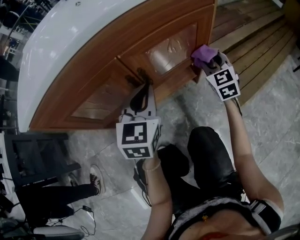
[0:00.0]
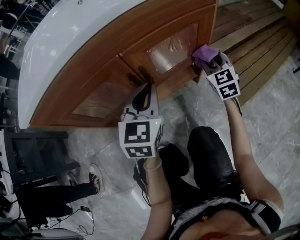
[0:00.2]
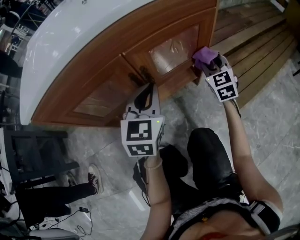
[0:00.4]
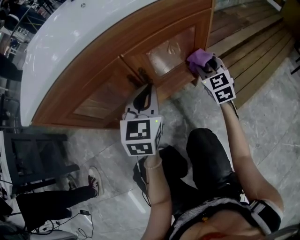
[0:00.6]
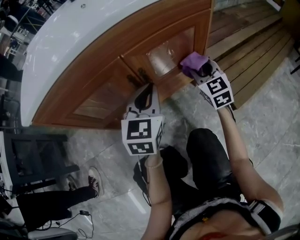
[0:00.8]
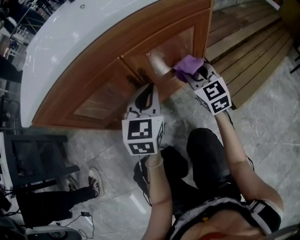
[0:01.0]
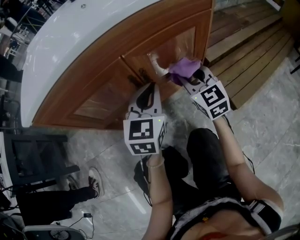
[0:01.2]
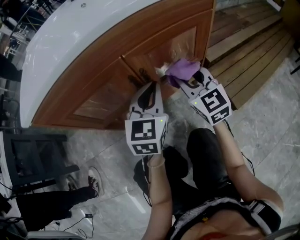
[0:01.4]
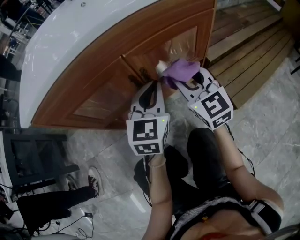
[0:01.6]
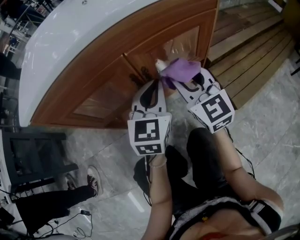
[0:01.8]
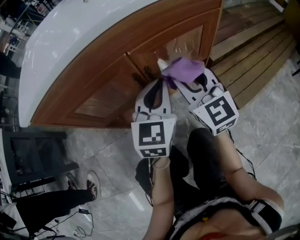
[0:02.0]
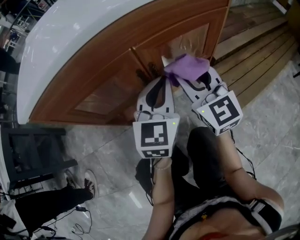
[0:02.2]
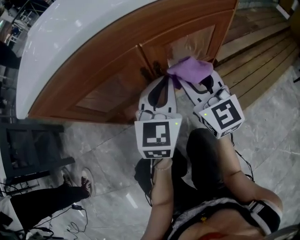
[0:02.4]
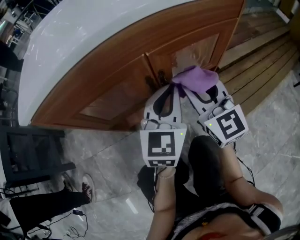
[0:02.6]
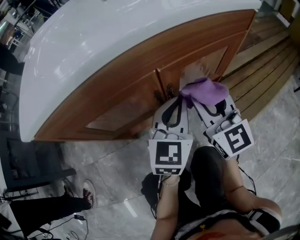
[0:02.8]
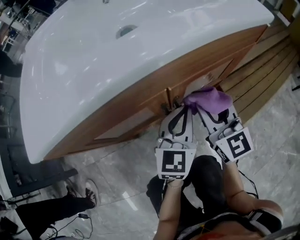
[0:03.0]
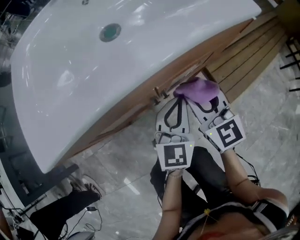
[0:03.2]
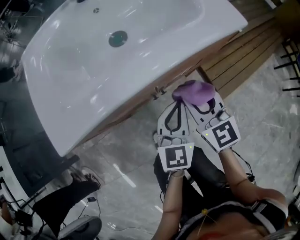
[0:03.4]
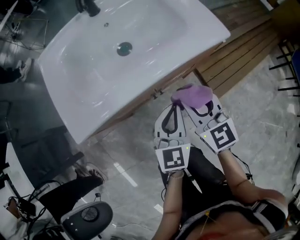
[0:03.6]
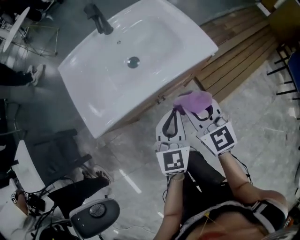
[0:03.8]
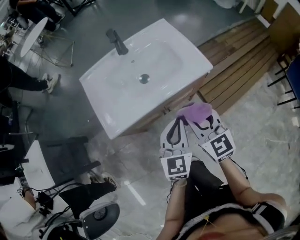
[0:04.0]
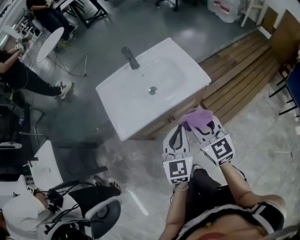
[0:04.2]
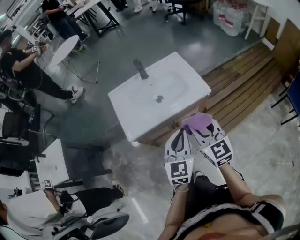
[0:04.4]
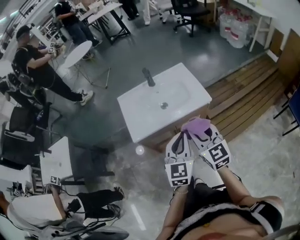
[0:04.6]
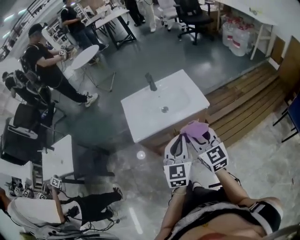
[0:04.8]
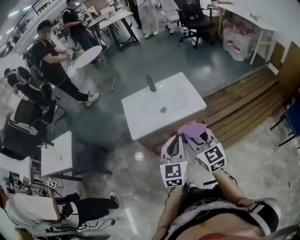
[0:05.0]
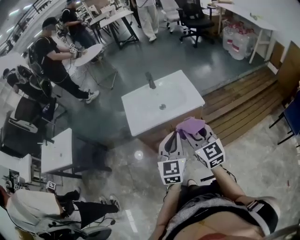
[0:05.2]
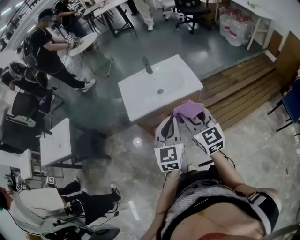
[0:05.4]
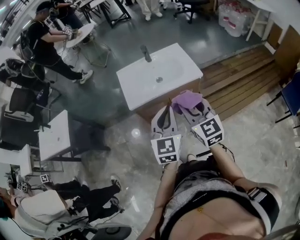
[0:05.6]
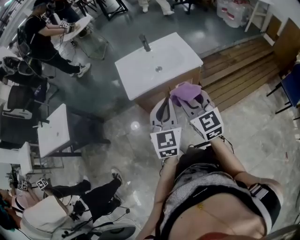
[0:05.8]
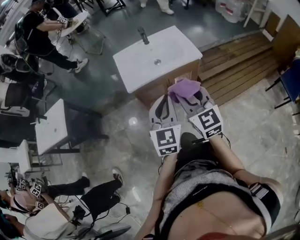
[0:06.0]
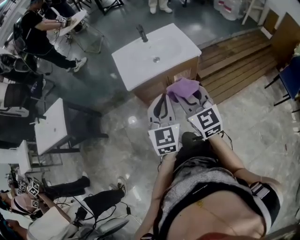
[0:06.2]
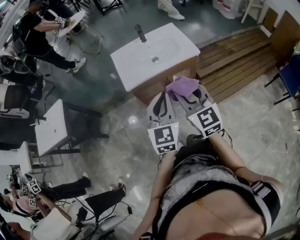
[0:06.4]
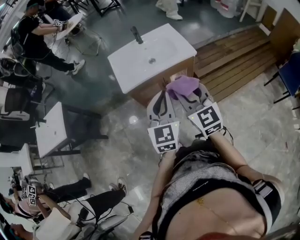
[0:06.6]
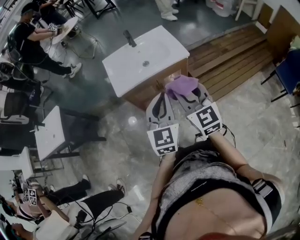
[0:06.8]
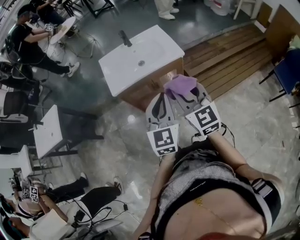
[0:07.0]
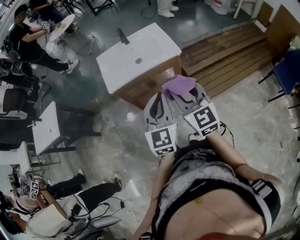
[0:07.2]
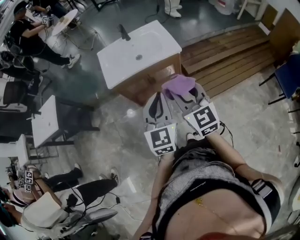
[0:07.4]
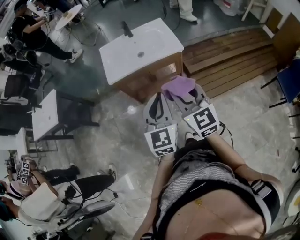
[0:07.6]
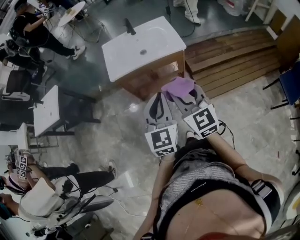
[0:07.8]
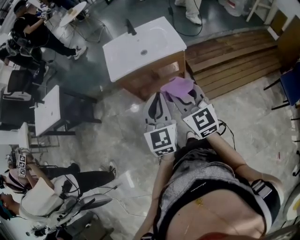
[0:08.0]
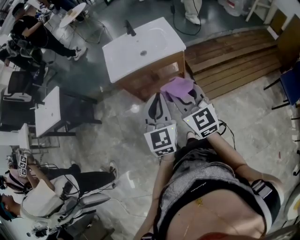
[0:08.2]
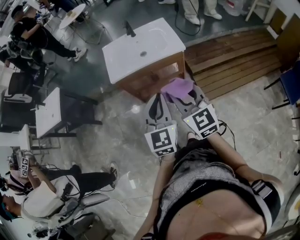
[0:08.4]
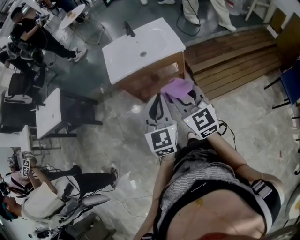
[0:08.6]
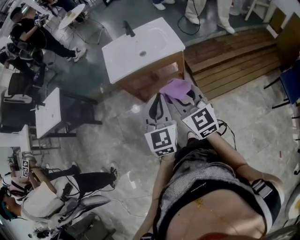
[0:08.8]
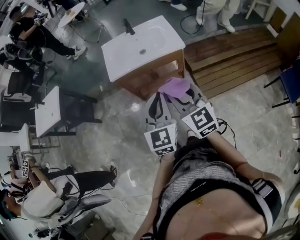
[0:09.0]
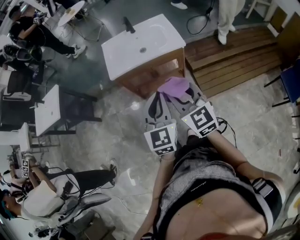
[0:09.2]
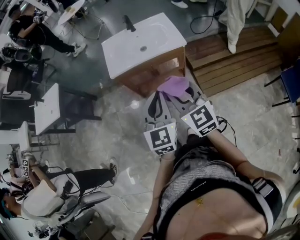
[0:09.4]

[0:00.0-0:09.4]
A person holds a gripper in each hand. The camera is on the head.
0:00.0 to 0:01.6: The right gripper is displaced to the left, upward and backward by about 20 cm, and changes its angle by about 20 degrees.
0:01.6 to 0:03.2: There are only small adjustments of the grippers.
0:03.2 to 0:04.8: The two grippers go about 50 cm upward.
0:04.8 to 0:06.2: The two grippers go some 15 cm backward and to the left.
0:06.2 to 0:07.8: Both grippers travel together to the right and backward, some 15 cm.
0:07.8 to 0:09.4: There are only small adjustments of the grippers.

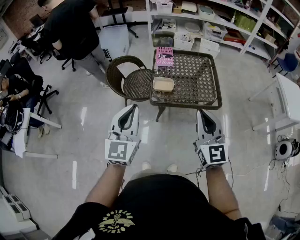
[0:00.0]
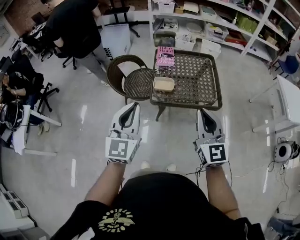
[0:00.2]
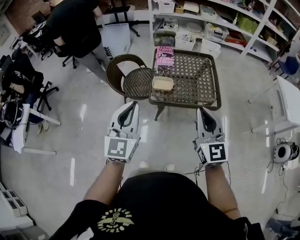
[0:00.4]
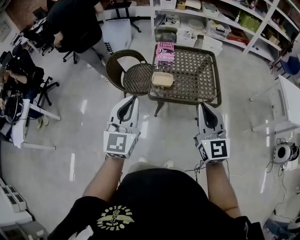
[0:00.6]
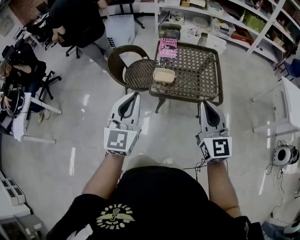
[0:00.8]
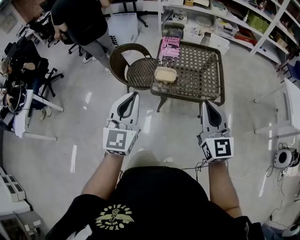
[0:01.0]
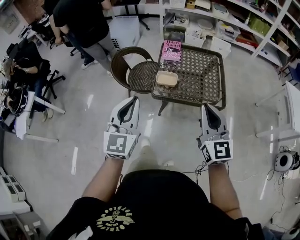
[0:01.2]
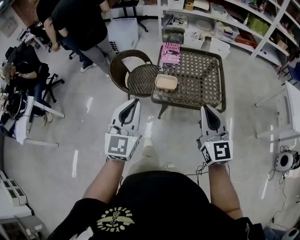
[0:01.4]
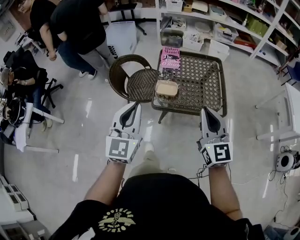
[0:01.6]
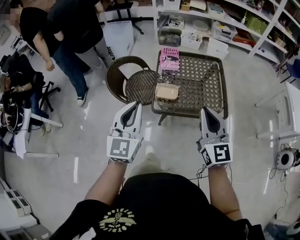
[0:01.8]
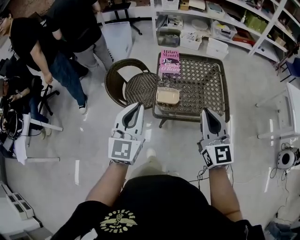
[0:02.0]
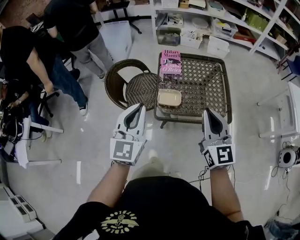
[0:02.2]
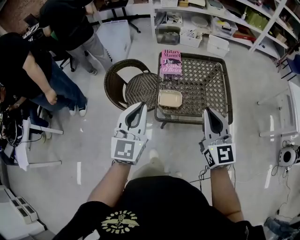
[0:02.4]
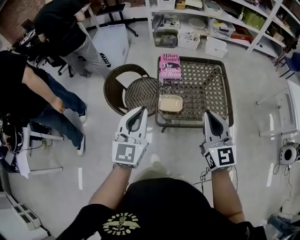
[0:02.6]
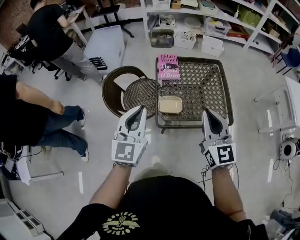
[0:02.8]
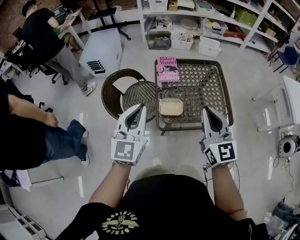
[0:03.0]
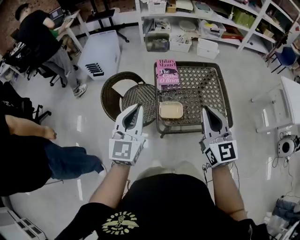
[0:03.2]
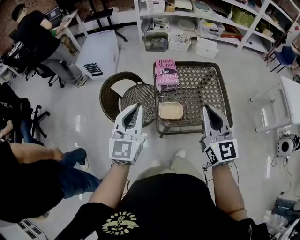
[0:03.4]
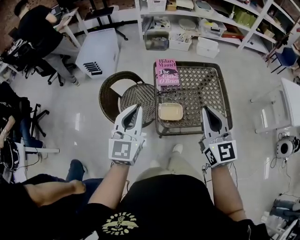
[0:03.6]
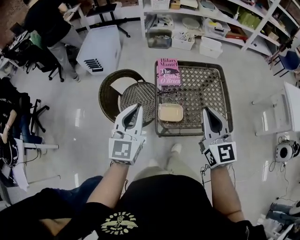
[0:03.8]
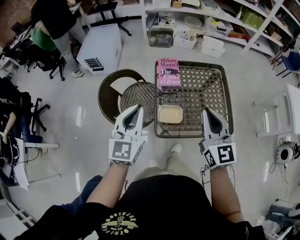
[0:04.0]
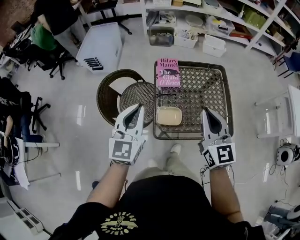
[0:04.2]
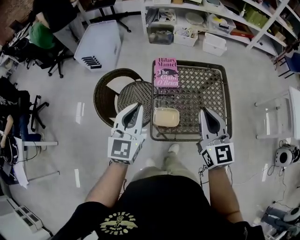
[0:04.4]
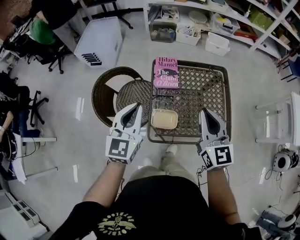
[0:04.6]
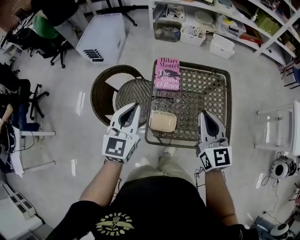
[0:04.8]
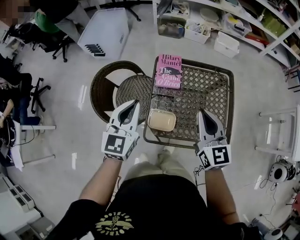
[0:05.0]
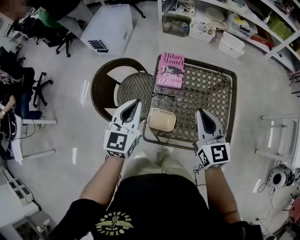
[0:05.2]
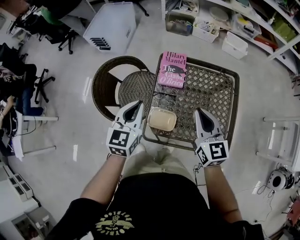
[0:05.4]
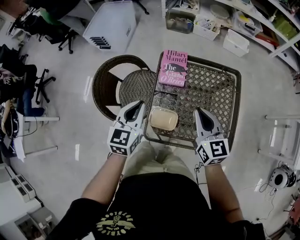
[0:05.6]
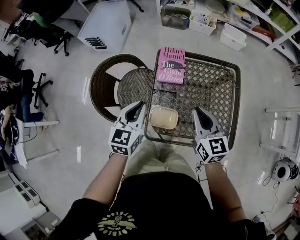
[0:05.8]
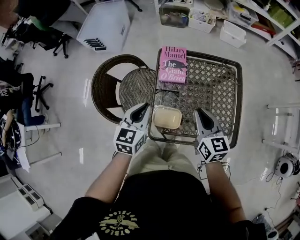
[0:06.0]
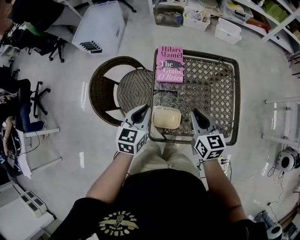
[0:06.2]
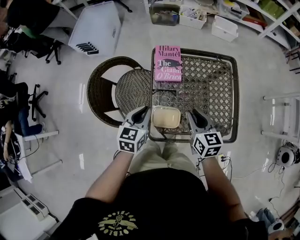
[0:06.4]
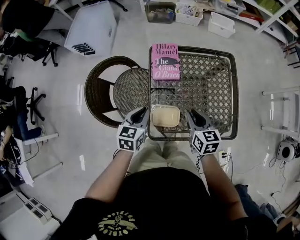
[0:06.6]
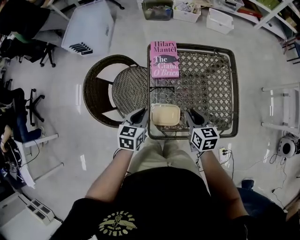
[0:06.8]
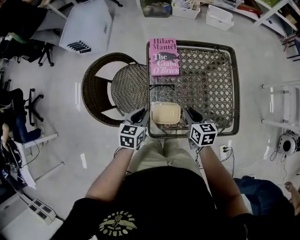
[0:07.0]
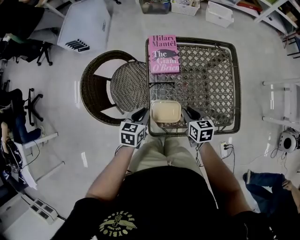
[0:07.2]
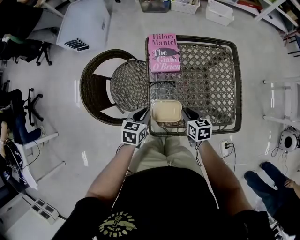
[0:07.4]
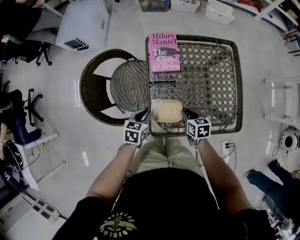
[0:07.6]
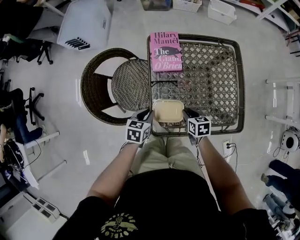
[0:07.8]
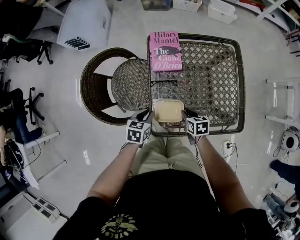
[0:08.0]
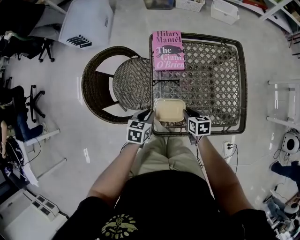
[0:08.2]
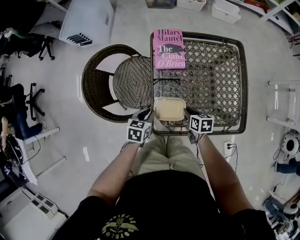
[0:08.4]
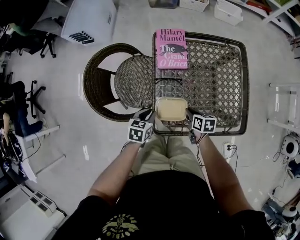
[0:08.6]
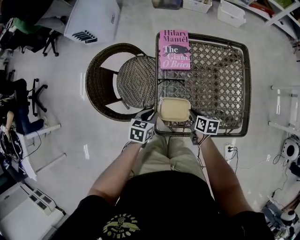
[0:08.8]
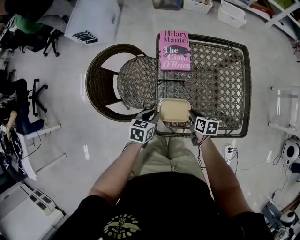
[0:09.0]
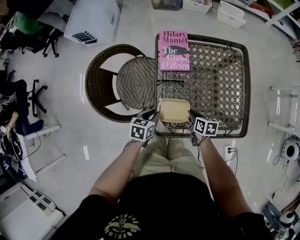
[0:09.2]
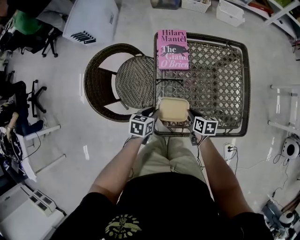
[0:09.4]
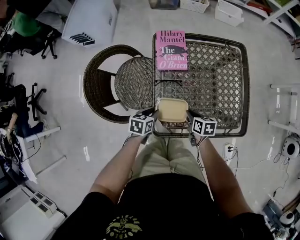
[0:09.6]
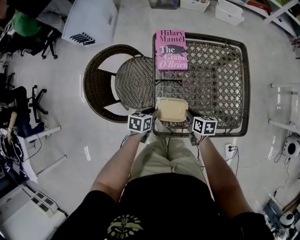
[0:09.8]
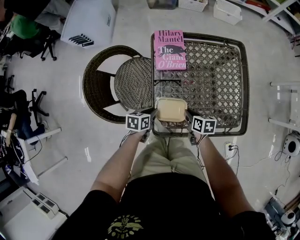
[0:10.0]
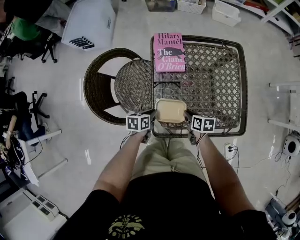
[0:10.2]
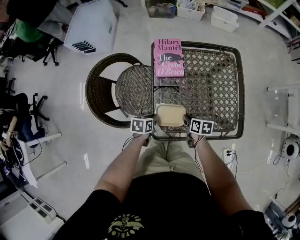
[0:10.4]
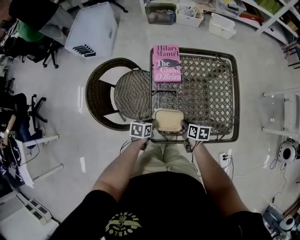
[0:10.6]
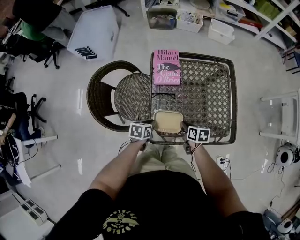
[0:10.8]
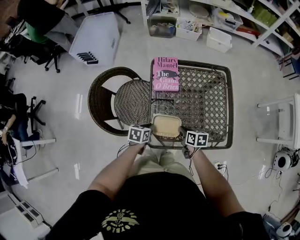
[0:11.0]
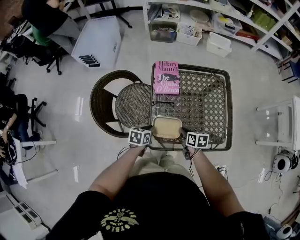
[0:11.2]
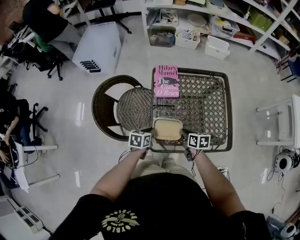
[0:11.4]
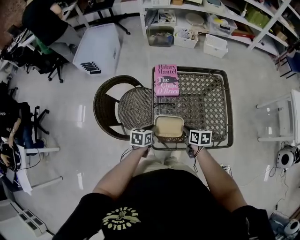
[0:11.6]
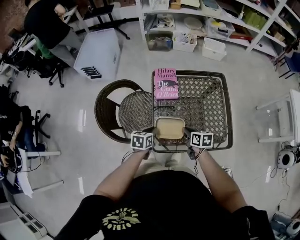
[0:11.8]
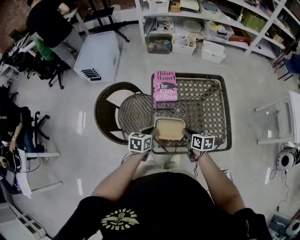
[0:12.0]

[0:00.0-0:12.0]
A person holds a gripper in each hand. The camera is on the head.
0:00.0 to 0:01.6: The grippers both shift forward by roughly 5 cm.
0:01.6 to 0:03.0: The right gripper heads forward and to the left, covering roughly 20 cm. Meanwhile the left gripper heads forward, covering about 20 cm.
0:03.0 to 0:04.4: The two grippers go about 15 cm forward.
0:04.4 to 0:06.0: The grippers both shift downward and forward by some 15 cm. The left gripper rotates approximately 20 degrees. Meanwhile the right gripper turns by approximately 20 degrees.
0:06.0 to 0:07.6: Both grippers move downward, roughly 20 cm. The left gripper changes its angle by about 30 degrees, while the right gripper turns by roughly 30 degrees.
0:07.6 to 0:09.0: The grippers make only small movements.
0:09.0 to 0:10.4: The grippers stay close to where they were, moving slightly.
0:10.4 to 0:12.0: Both grippers move upward, some 15 cm.

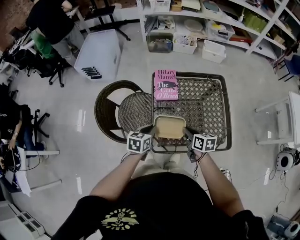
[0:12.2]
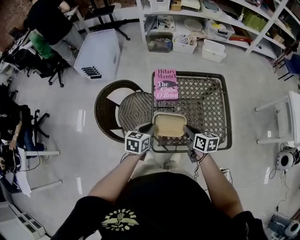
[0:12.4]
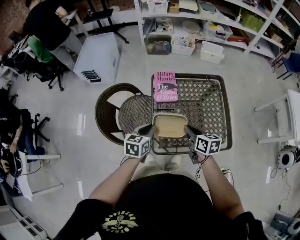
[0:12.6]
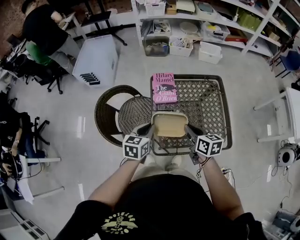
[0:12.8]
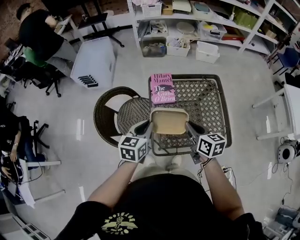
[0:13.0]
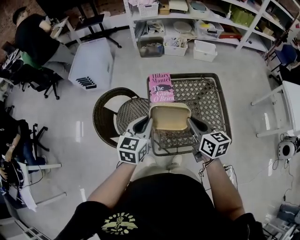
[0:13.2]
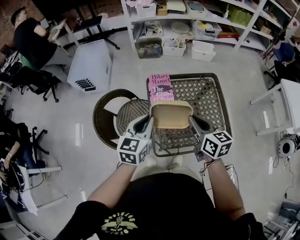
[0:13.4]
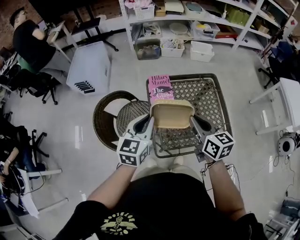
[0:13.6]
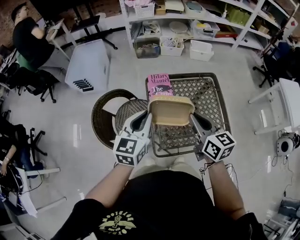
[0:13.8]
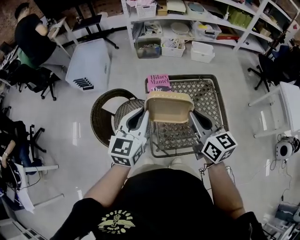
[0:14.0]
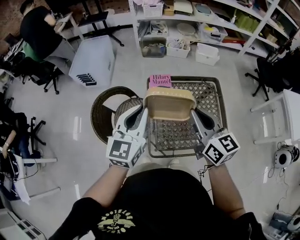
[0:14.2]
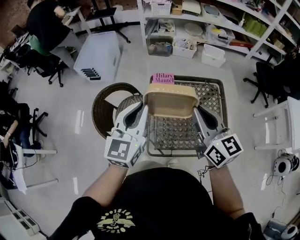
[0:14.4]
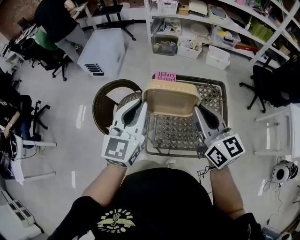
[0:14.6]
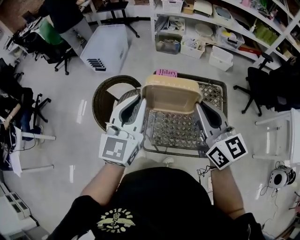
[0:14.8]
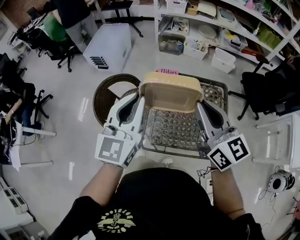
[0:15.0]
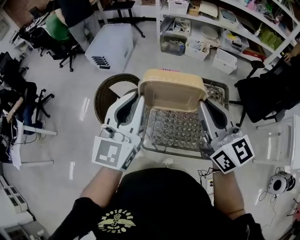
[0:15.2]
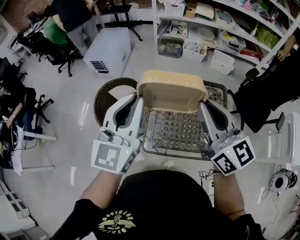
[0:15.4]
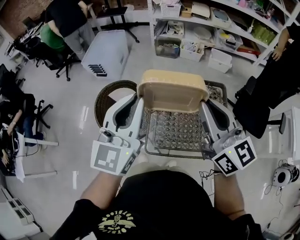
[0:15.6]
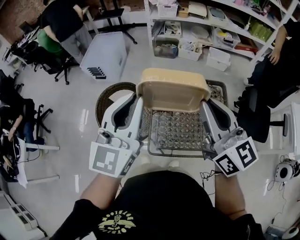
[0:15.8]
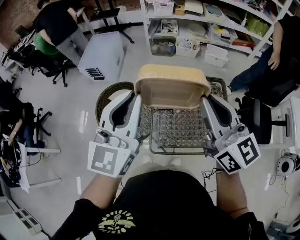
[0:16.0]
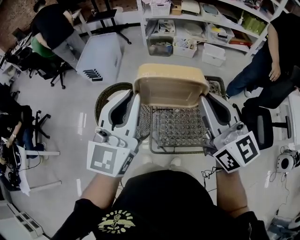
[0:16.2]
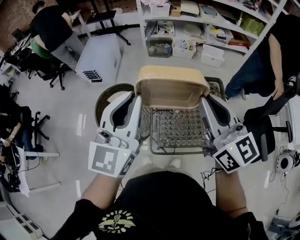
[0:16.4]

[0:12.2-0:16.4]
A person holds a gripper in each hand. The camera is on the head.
0:12.2 to 0:13.6: Both grippers move upward, roughly 20 cm. The right gripper swivels roughly 20 degrees; the left gripper swivels about 30 degrees.
0:13.6 to 0:15.0: The two grippers go some 15 cm upward. The left gripper changes its angle by some 30 degrees. Meanwhile the right gripper changes its angle by some 30 degrees.
0:15.0 to 0:16.4: The grippers both shift upward by roughly 5 cm.
